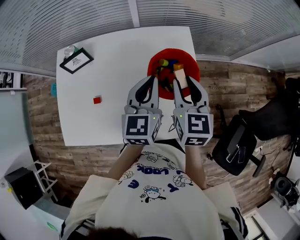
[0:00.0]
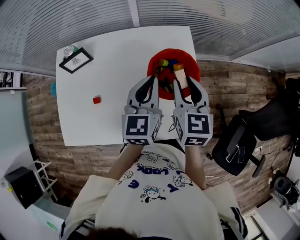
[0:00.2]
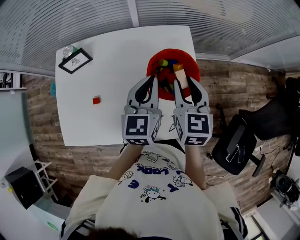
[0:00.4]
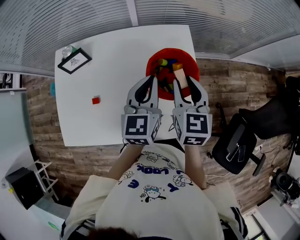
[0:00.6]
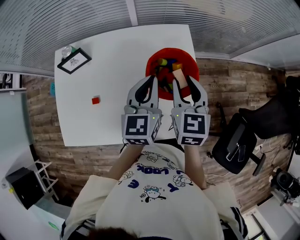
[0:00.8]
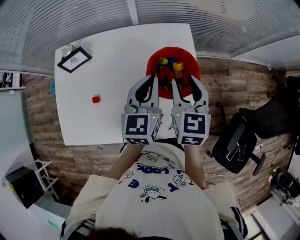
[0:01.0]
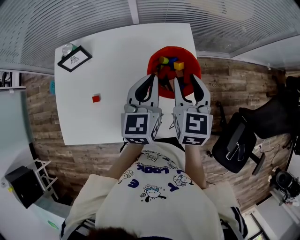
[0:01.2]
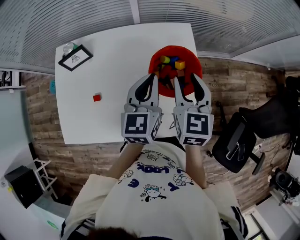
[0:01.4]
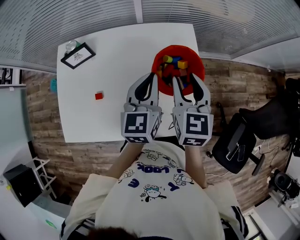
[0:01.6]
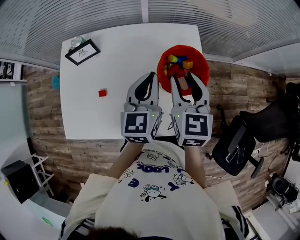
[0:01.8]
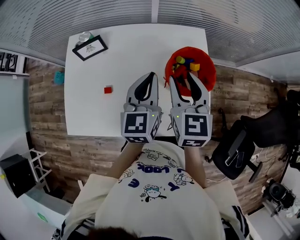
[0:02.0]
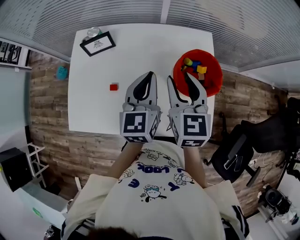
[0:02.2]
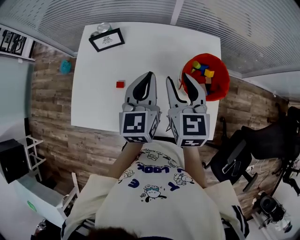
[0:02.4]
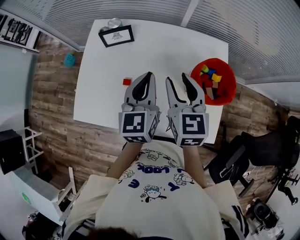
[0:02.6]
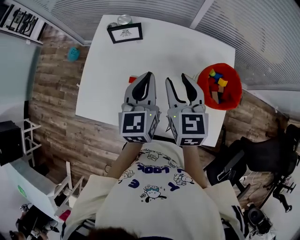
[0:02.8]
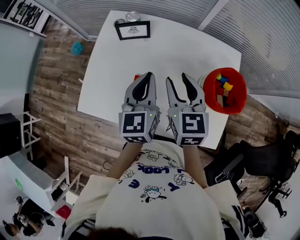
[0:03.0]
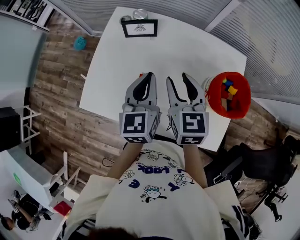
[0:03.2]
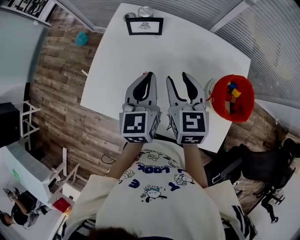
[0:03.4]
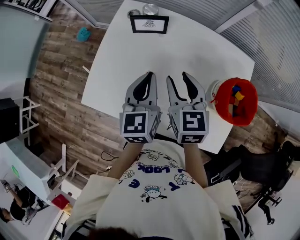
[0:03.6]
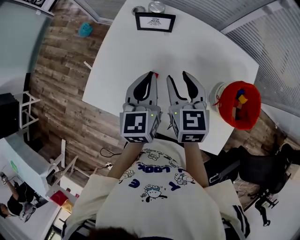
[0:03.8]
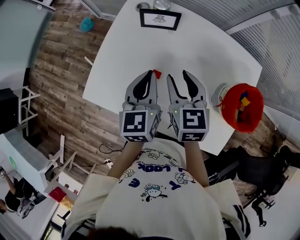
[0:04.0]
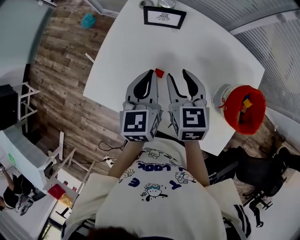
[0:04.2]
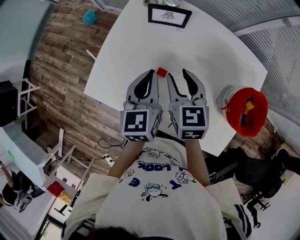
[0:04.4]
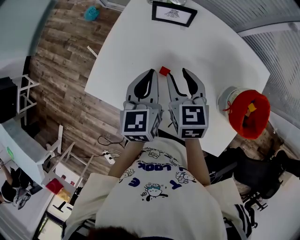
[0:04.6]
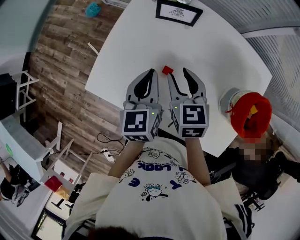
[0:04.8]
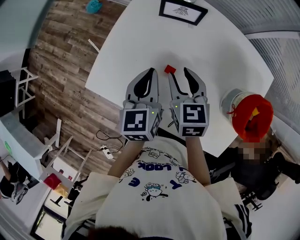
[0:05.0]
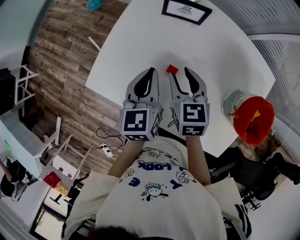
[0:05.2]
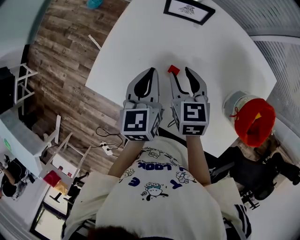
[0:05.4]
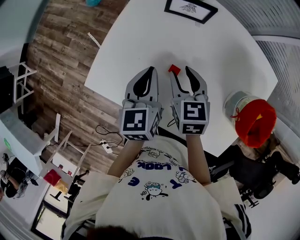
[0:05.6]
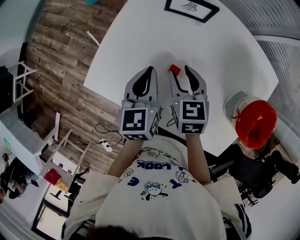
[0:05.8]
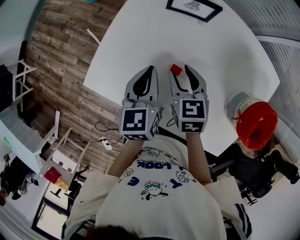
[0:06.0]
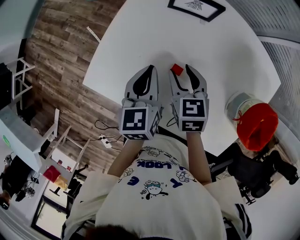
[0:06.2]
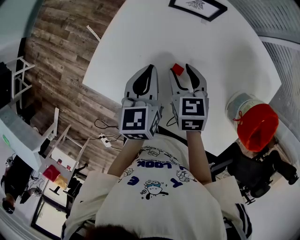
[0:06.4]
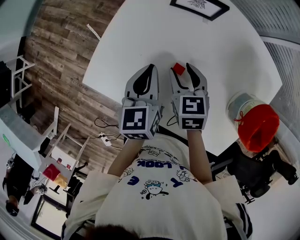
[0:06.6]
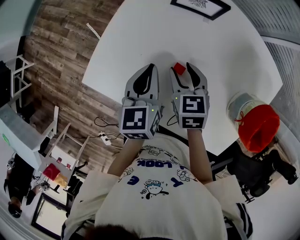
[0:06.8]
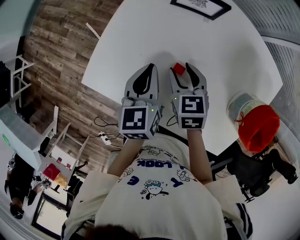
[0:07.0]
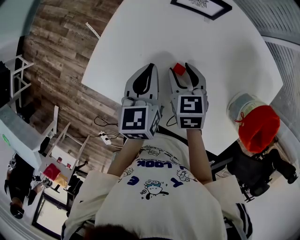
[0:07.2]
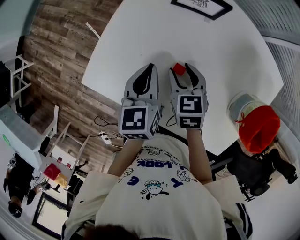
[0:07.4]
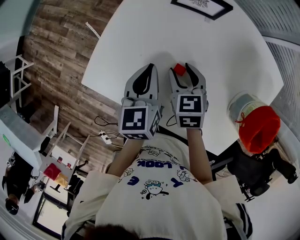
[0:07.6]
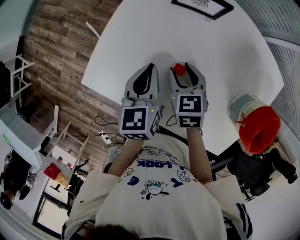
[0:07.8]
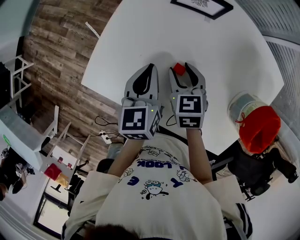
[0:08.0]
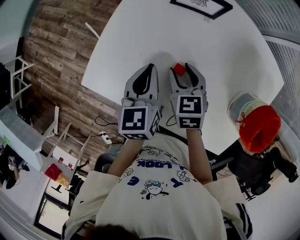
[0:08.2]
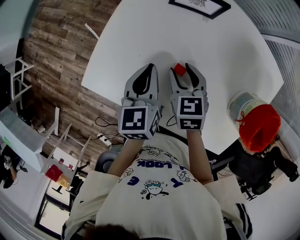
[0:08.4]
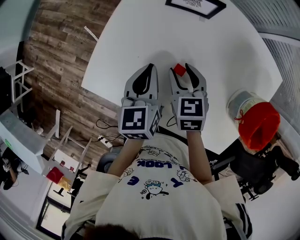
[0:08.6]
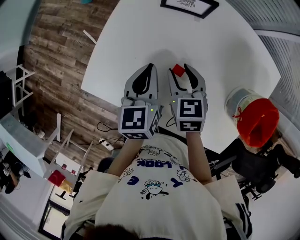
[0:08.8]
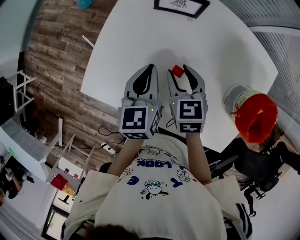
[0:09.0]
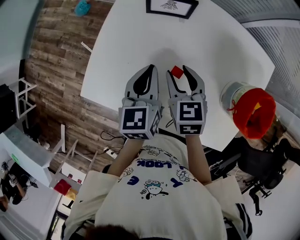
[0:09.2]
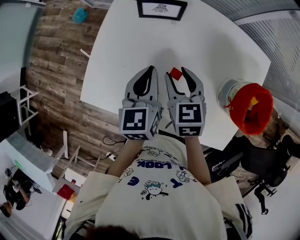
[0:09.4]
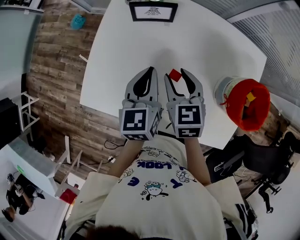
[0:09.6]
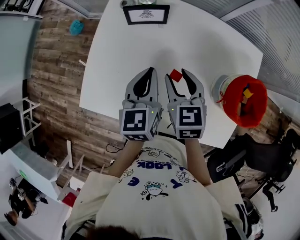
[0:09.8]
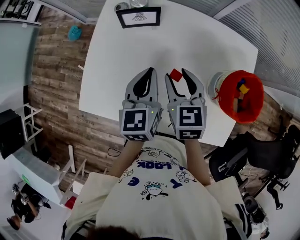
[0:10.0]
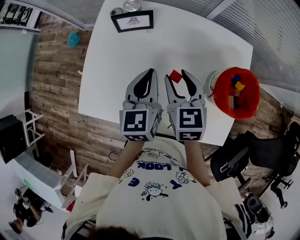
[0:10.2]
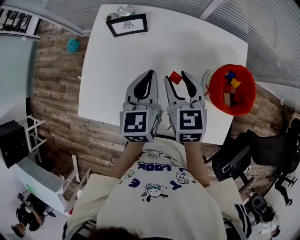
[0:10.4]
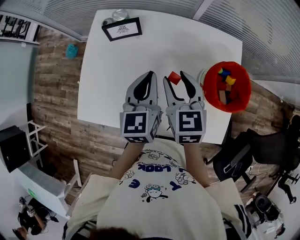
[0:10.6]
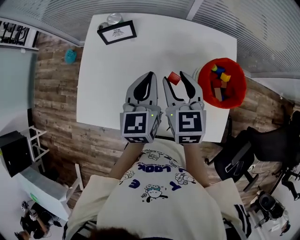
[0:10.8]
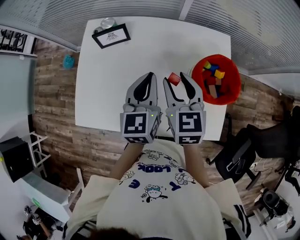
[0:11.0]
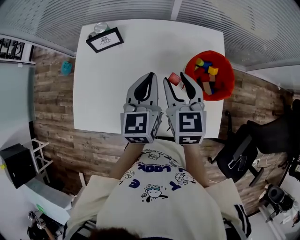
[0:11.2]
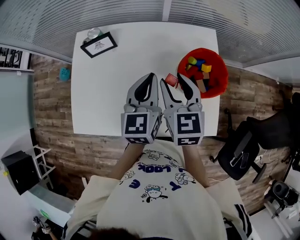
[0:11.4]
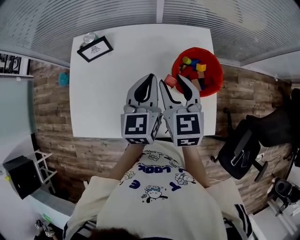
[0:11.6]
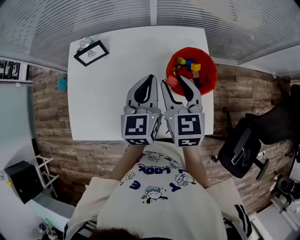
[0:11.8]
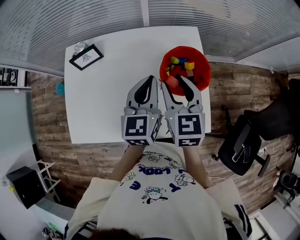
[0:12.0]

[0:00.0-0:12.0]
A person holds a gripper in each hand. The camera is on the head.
0:00.0 to 0:01.6: There are only small adjustments of the grippers.
0:01.6 to 0:03.0: The two grippers go about 20 cm to the left. The right gripper changes its angle by roughly 30 degrees. Meanwhile the left gripper rotates approximately 20 degrees.
0:03.0 to 0:04.4: Both grippers move to the left and downward, some 10 cm.
0:04.4 to 0:06.0: Both grippers move downward, about 5 cm.
0:06.0 to 0:07.6: There are only small adjustments of the grippers.
0:07.6 to 0:09.0: The right gripper moves some 5 cm.
0:09.0 to 0:10.4: Both grippers travel together to the right and upward, approximately 15 cm. The right gripper rotates approximately 20 degrees.
0:10.4 to 0:12.0: The right gripper moves to the right and upward, some 15 cm. Meanwhile the left gripper travels to the right by roughly 15 cm.

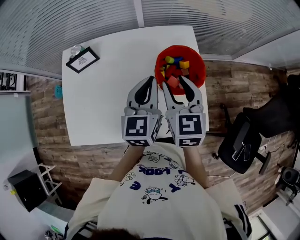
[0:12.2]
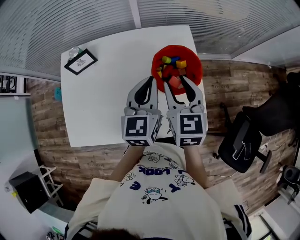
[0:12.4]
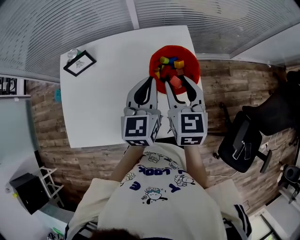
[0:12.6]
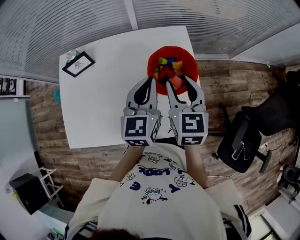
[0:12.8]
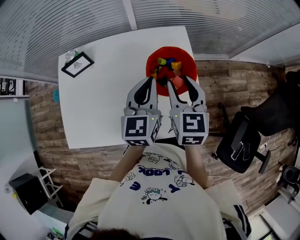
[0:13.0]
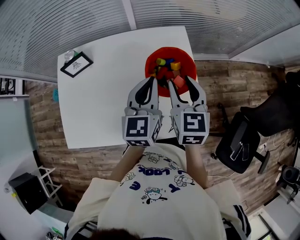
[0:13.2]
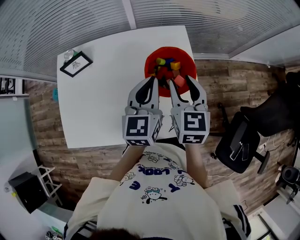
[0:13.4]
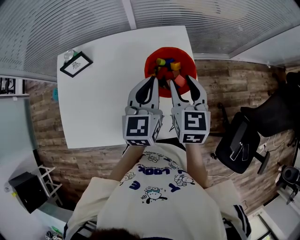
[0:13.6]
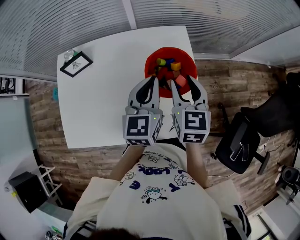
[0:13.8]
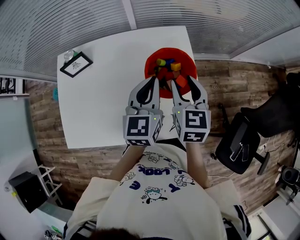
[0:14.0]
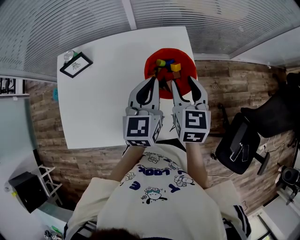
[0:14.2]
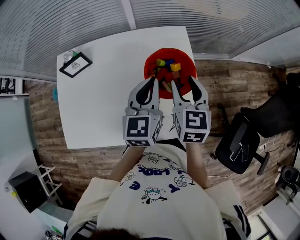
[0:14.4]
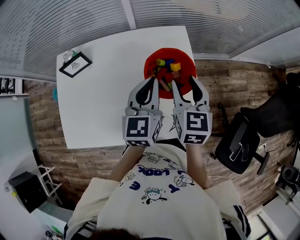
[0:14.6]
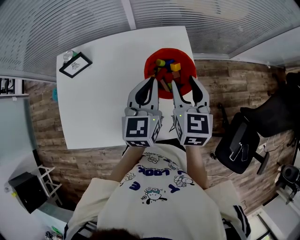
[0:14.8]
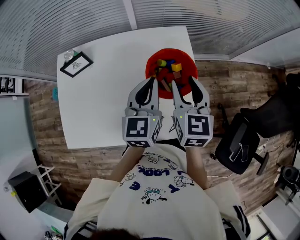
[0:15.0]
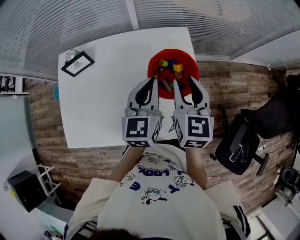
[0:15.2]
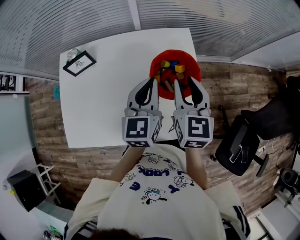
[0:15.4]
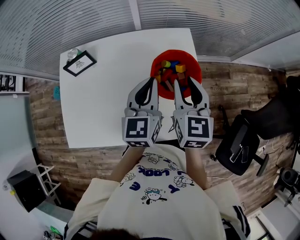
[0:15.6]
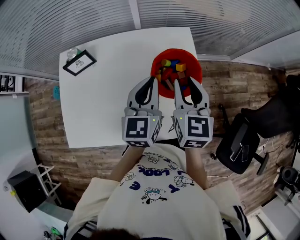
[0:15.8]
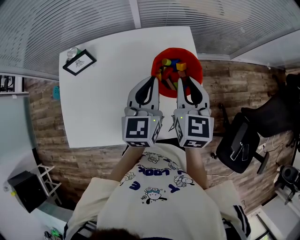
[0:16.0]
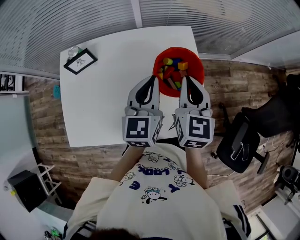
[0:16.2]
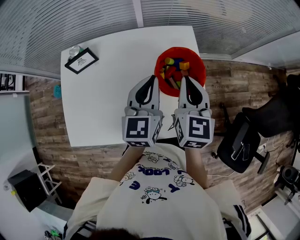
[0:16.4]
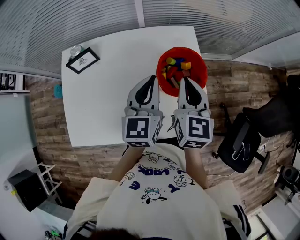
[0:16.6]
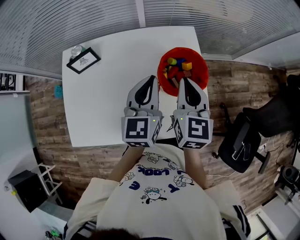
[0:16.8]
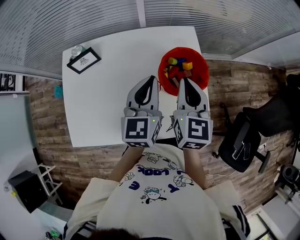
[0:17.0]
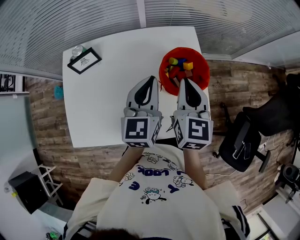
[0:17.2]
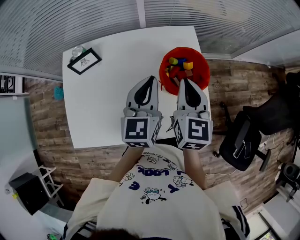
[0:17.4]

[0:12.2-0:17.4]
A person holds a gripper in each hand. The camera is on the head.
0:12.2 to 0:14.0: The right gripper is displaced to the right by about 5 cm.
0:14.0 to 0:15.6: The grippers move only a little.
0:15.6 to 0:17.4: The right gripper closes.

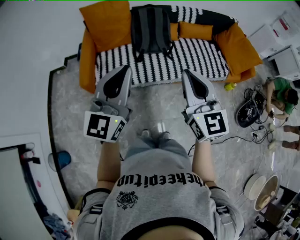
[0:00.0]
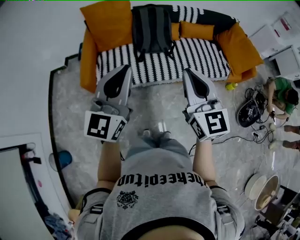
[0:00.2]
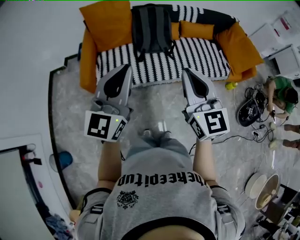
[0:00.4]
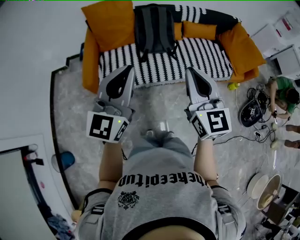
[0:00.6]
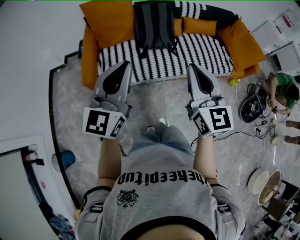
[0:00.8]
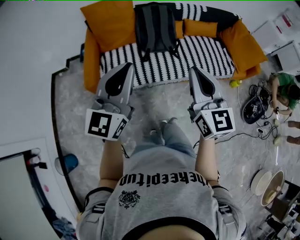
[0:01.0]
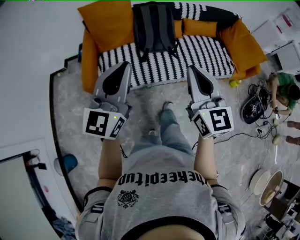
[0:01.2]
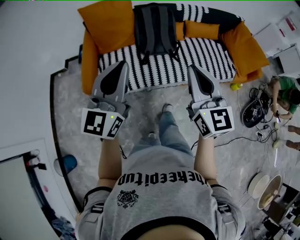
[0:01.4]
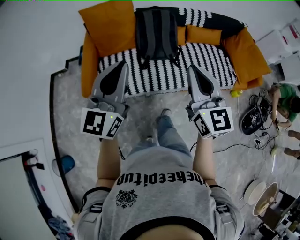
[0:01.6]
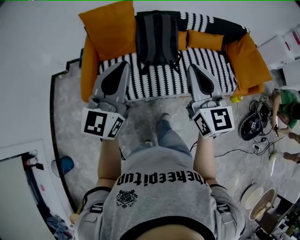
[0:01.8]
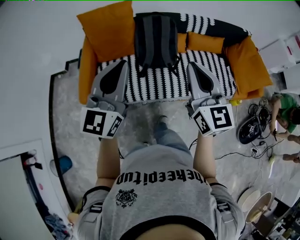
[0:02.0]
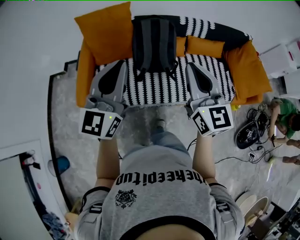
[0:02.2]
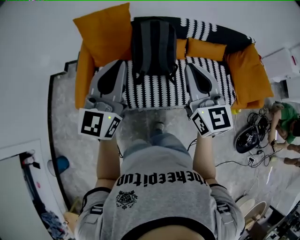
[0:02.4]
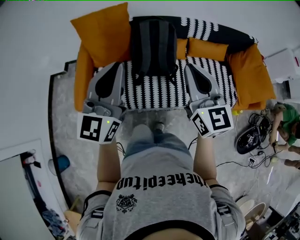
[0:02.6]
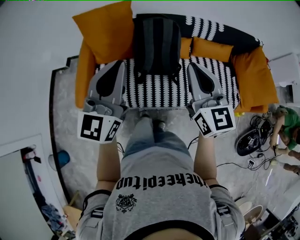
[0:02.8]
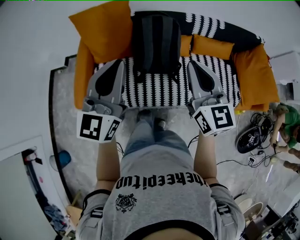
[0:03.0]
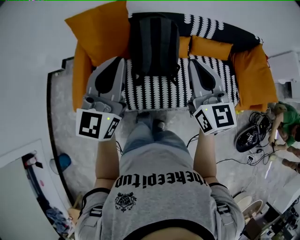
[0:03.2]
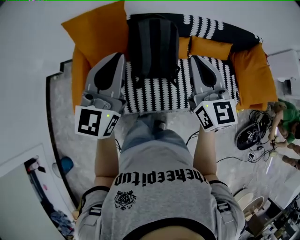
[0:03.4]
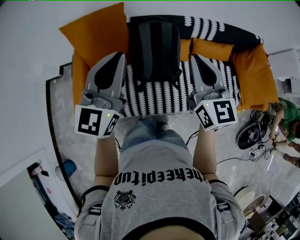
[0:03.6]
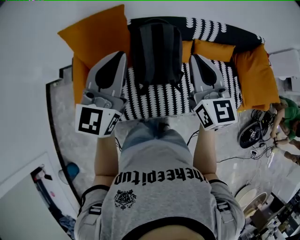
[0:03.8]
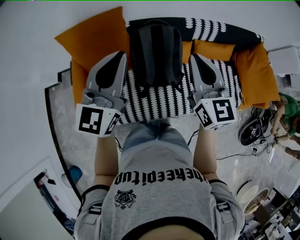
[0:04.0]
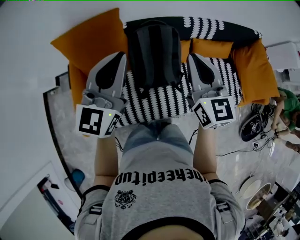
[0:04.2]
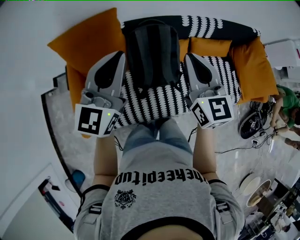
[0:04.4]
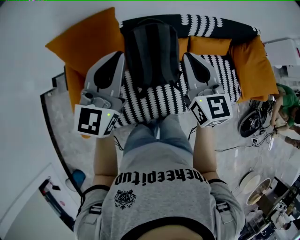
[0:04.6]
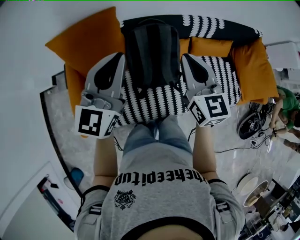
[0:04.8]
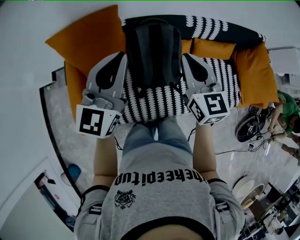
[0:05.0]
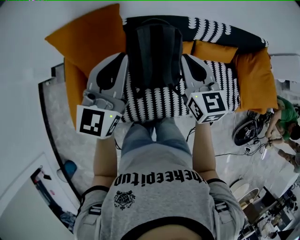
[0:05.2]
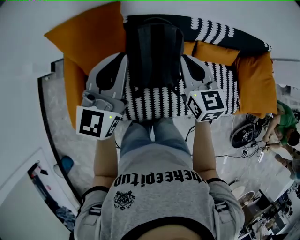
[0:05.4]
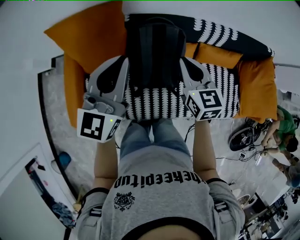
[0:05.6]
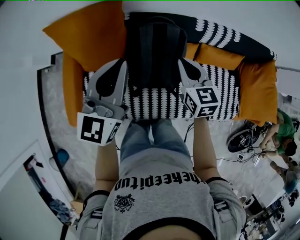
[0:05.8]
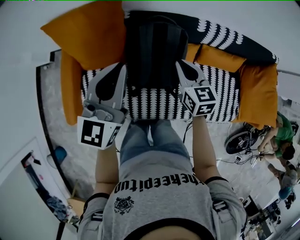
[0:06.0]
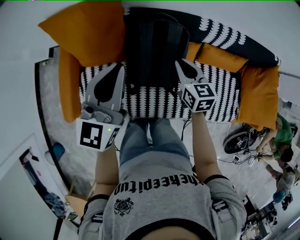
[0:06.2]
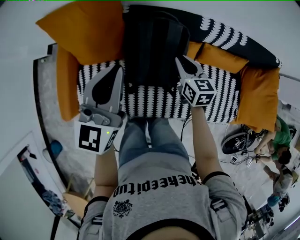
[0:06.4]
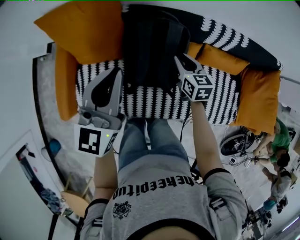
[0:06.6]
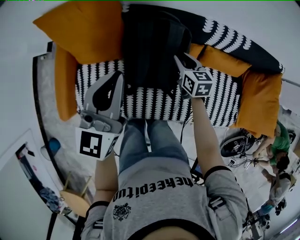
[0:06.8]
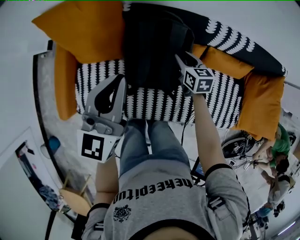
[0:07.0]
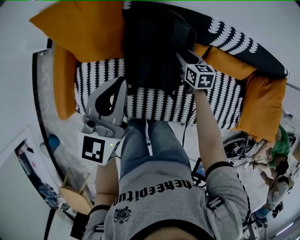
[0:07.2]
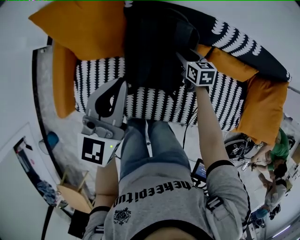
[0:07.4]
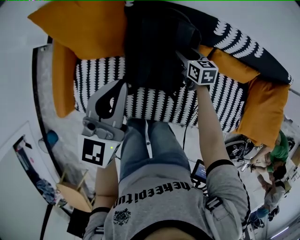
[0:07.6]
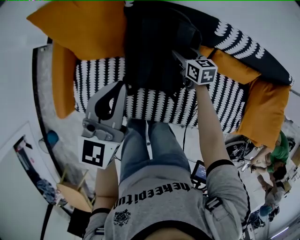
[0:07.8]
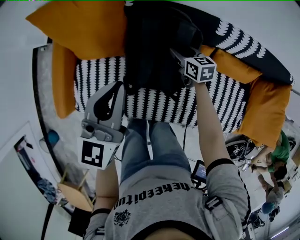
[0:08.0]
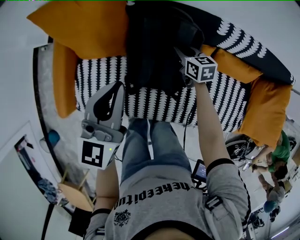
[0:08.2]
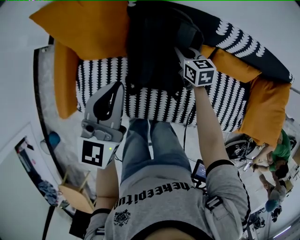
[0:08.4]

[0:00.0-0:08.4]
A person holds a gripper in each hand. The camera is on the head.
0:00.0 to 0:01.4: The two grippers go approximately 10 cm forward.
0:01.4 to 0:02.8: The left gripper heads forward and to the right, covering some 20 cm; the right gripper heads forward, covering about 25 cm.
0:02.8 to 0:04.2: Both grippers move forward, some 20 cm.
0:04.2 to 0:05.6: The left gripper ends up roughly 5 cm from where it was. The right gripper moves downward and forward, about 15 cm.
0:05.6 to 0:07.0: The right gripper shifts roughly 20 cm downward, rotates some 20 degrees, and opens, while the left gripper moves downward, some 10 cm.
0:07.0 to 0:08.4: The right gripper heads to the left, covering roughly 5 cm, and closes.
